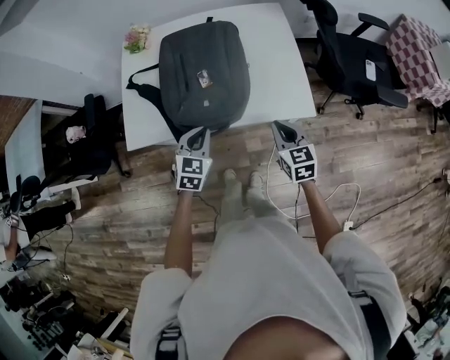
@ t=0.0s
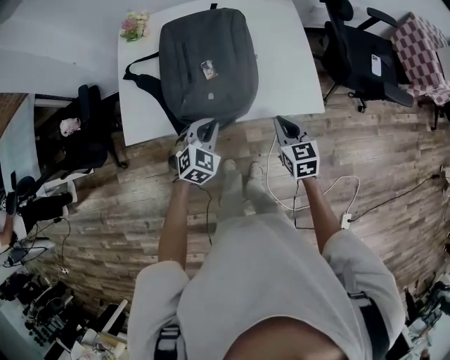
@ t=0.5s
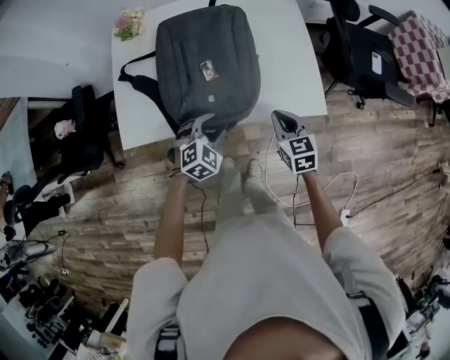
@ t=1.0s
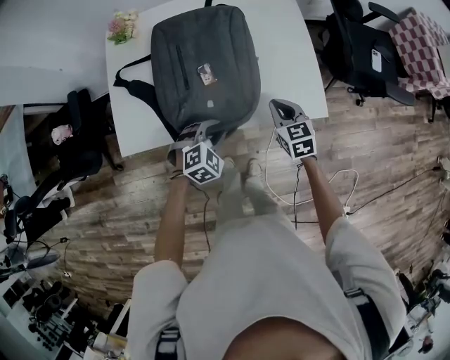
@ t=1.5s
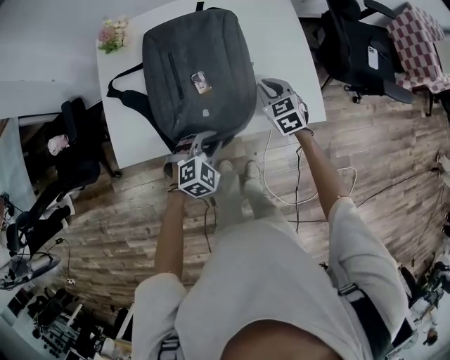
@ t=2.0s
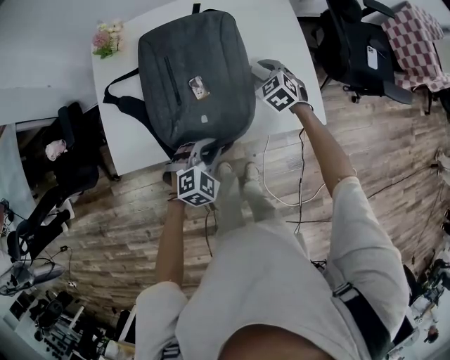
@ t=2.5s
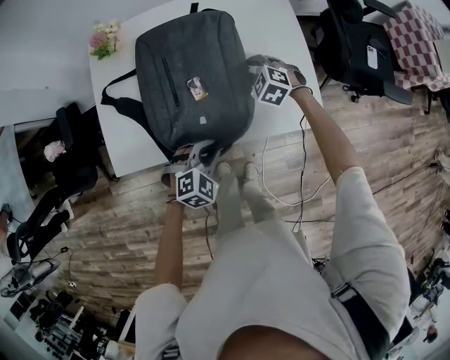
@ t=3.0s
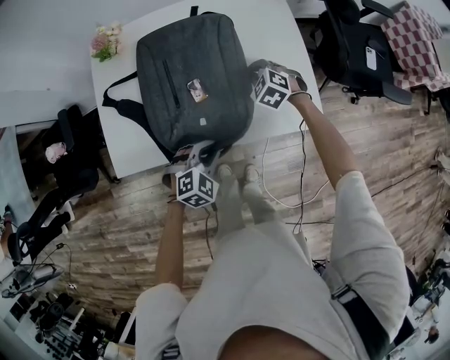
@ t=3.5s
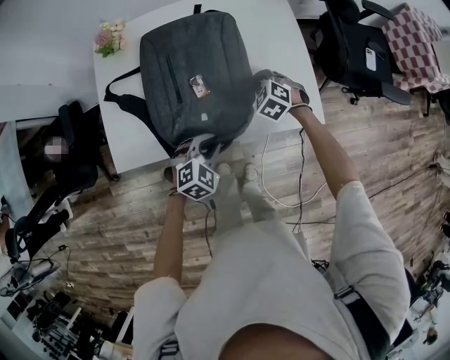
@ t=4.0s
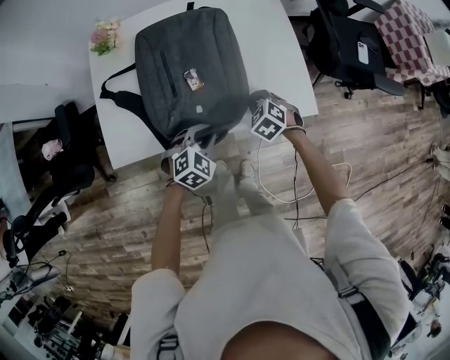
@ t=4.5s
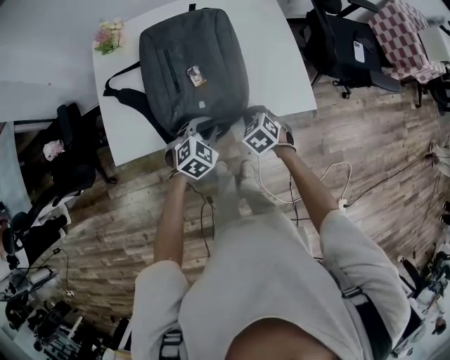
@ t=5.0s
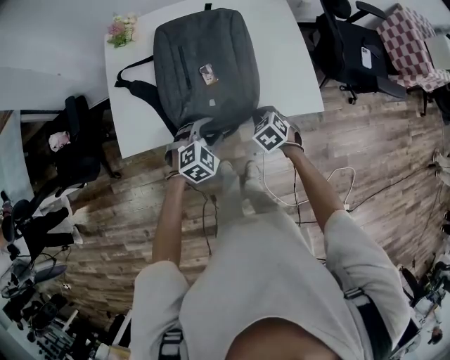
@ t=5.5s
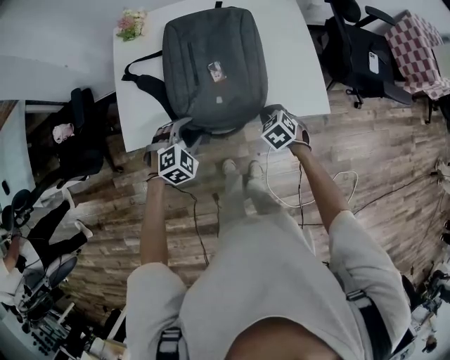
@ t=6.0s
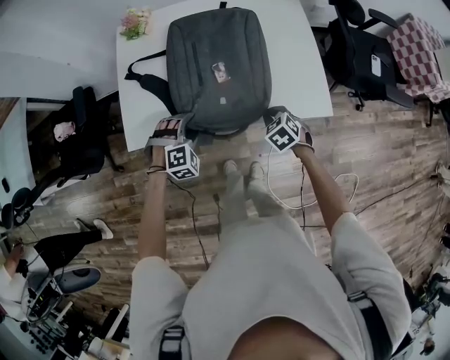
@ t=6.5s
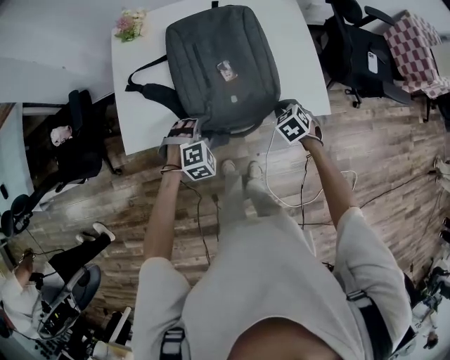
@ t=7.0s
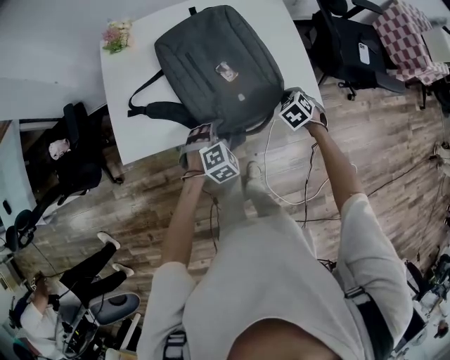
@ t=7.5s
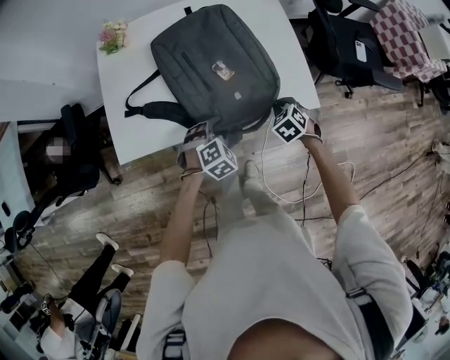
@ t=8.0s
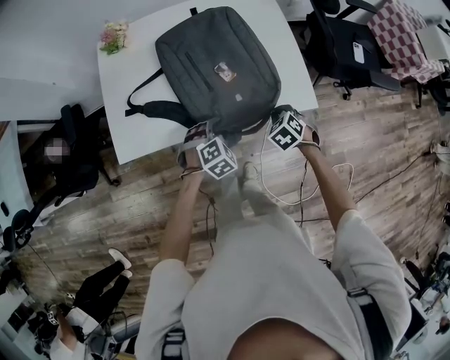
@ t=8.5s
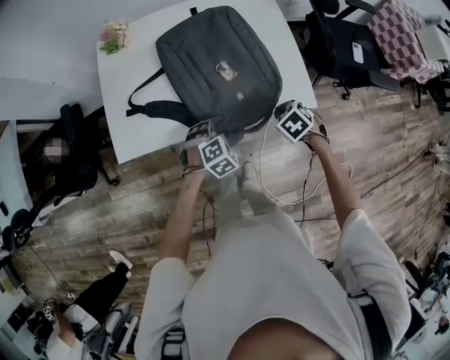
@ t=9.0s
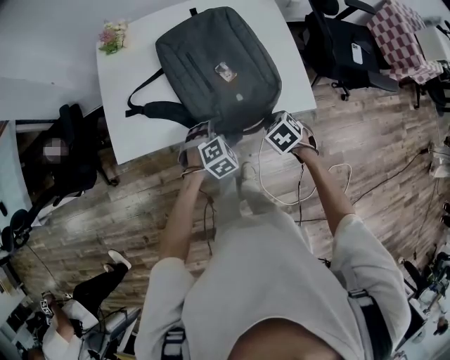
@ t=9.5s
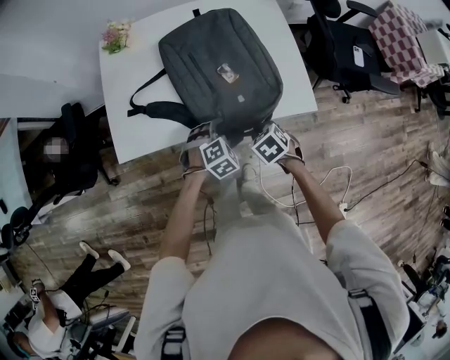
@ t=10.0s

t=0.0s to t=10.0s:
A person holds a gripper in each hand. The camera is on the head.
t=0.0s to t=2.0s: The right gripper heads forward and downward, covering approximately 20 cm. Meanwhile the left gripper travels downward by some 10 cm, changes its angle by approximately 40 degrees, and opens, then closes again.
t=2.0s to t=4.0s: The right gripper rotates some 30 degrees, and opens, then closes once more.
t=4.0s to t=6.0s: The left gripper heads to the left, covering roughly 10 cm, and opens its fingers, while the right gripper goes approximately 15 cm backward, and turns by approximately 20 degrees.
t=6.0s to t=8.0s: Both grippers move to the right, approximately 10 cm.
t=8.0s to t=10.0s: The right gripper travels to the left and backward by about 10 cm.

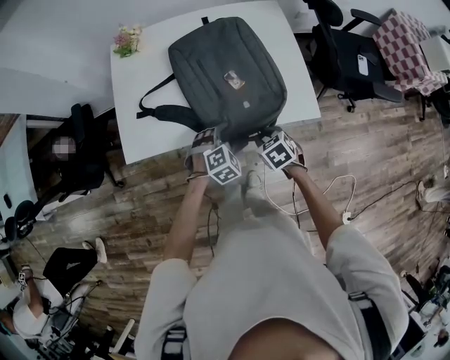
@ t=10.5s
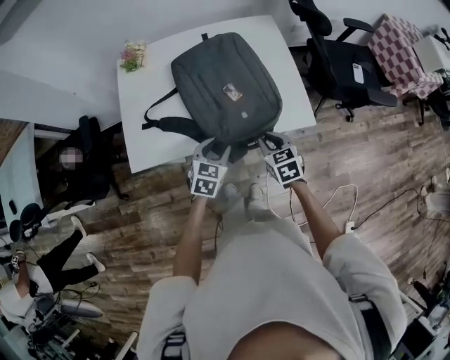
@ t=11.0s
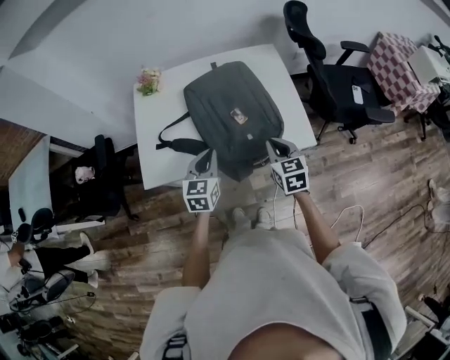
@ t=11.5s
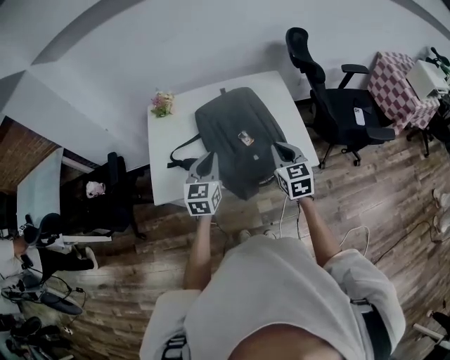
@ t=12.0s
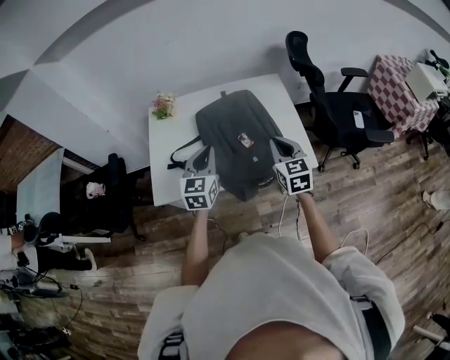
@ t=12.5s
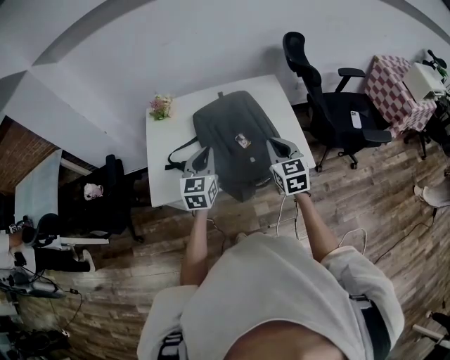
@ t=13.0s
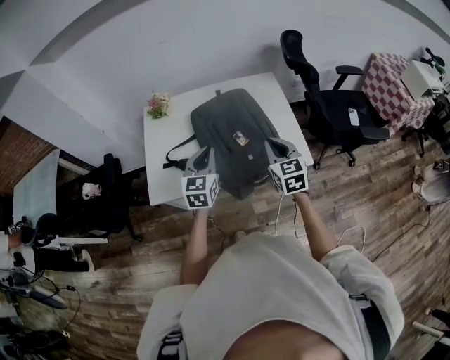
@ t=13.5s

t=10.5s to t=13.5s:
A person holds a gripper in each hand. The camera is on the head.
t=10.5s to t=12.0s: The two grippers go about 25 cm upward. The right gripper points its fingers about 40 degrees further upward. The left gripper tilts its fingers about 40 degrees upward, and closes up.
t=12.0s to t=13.5s: The grippers stay close to where they were, moving slightly.

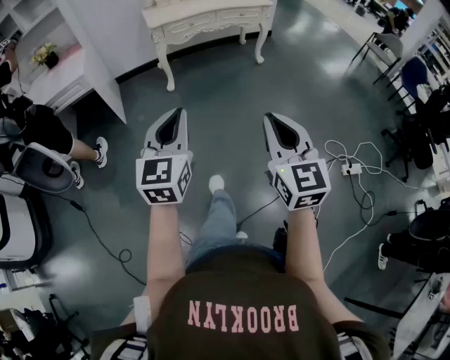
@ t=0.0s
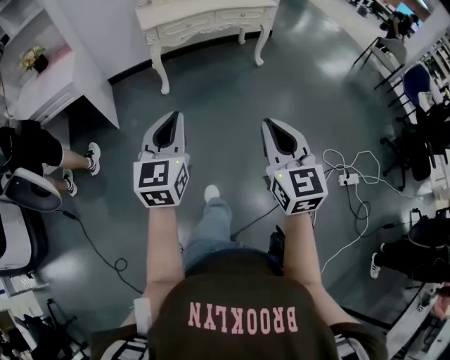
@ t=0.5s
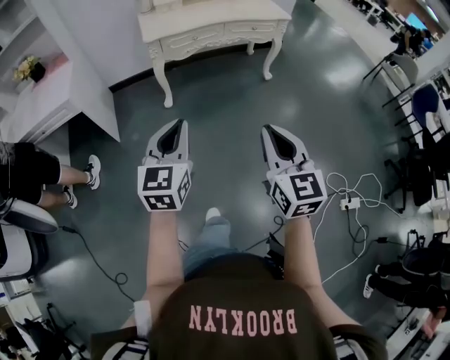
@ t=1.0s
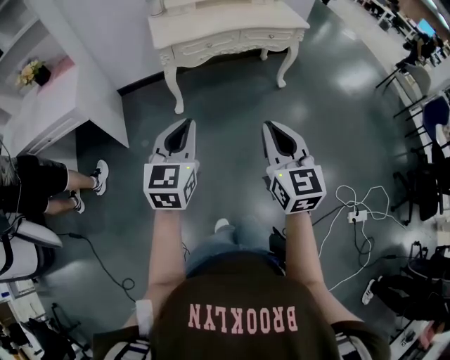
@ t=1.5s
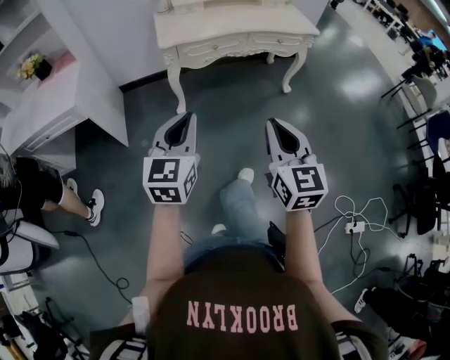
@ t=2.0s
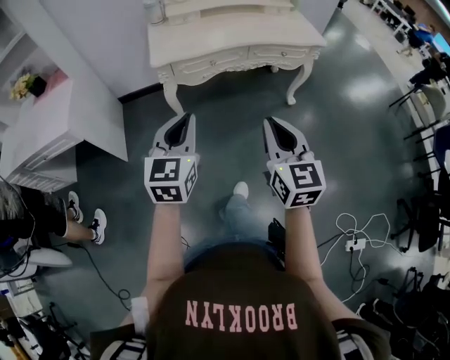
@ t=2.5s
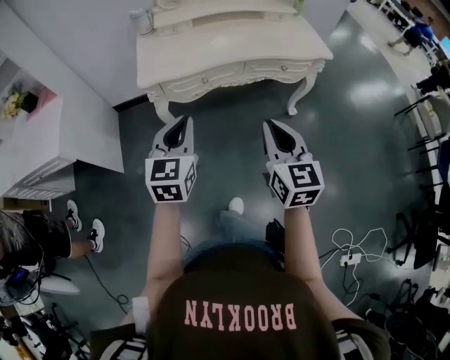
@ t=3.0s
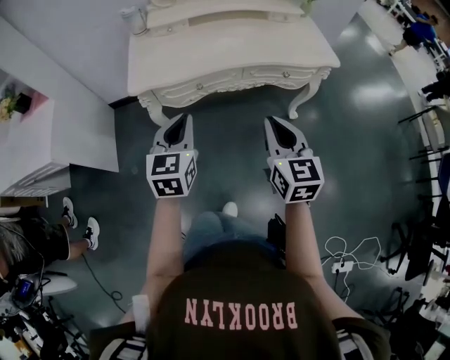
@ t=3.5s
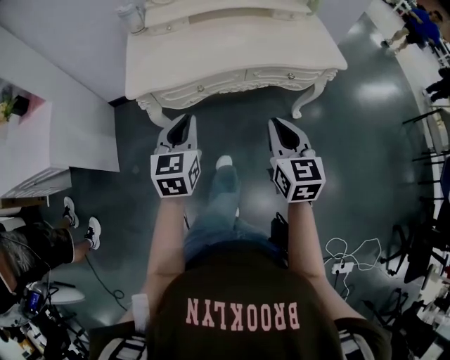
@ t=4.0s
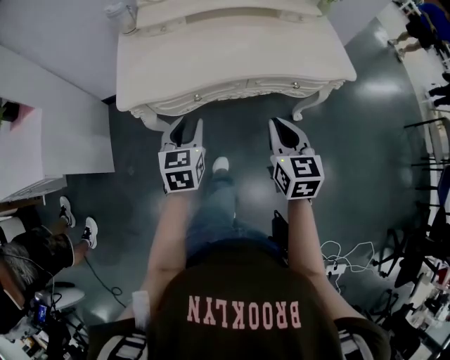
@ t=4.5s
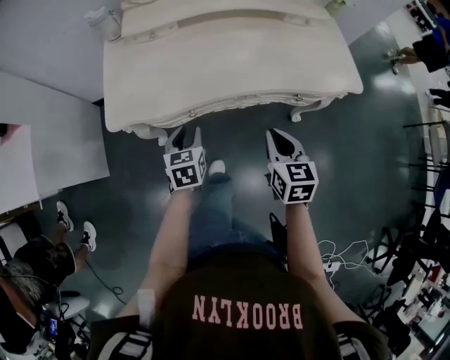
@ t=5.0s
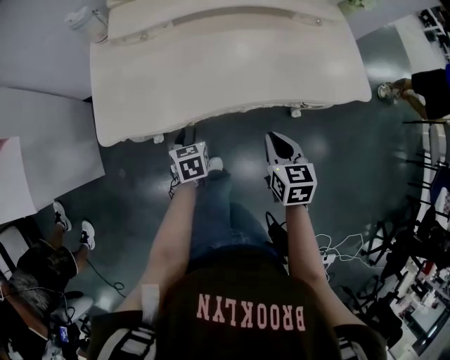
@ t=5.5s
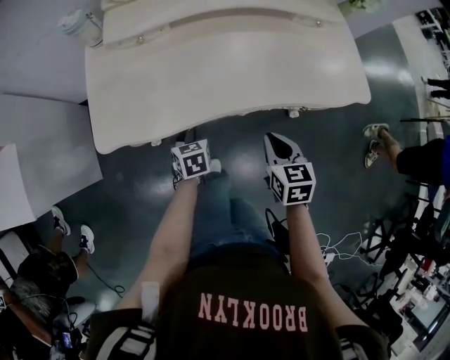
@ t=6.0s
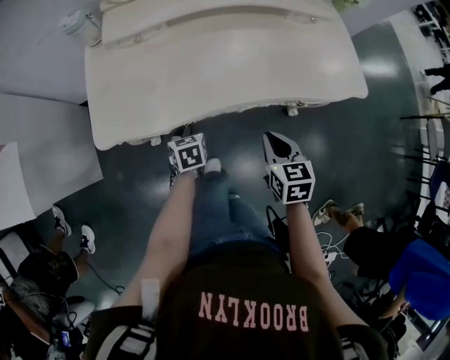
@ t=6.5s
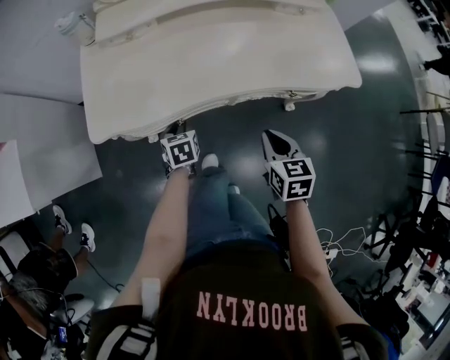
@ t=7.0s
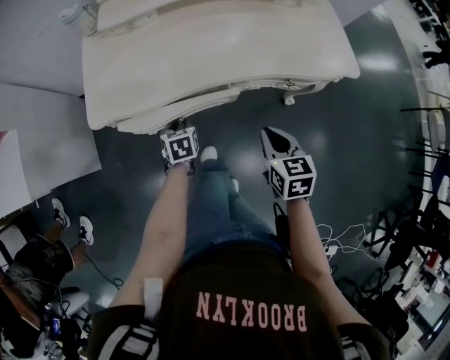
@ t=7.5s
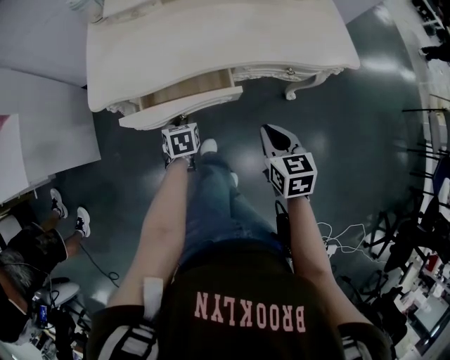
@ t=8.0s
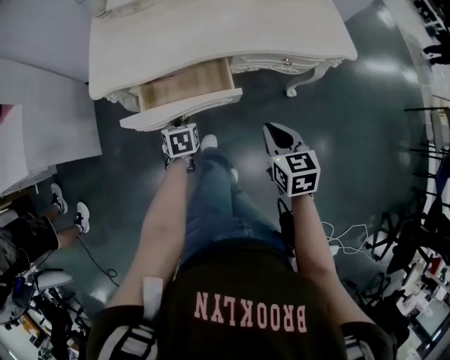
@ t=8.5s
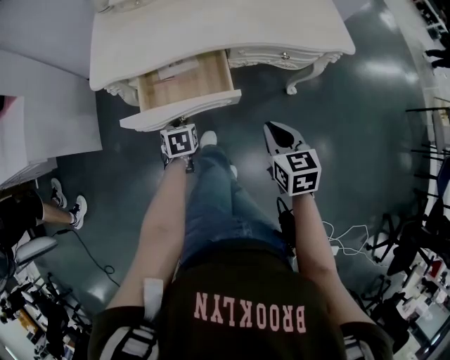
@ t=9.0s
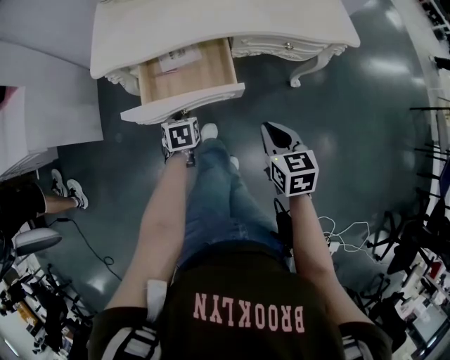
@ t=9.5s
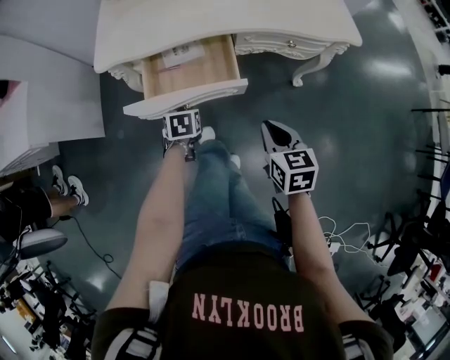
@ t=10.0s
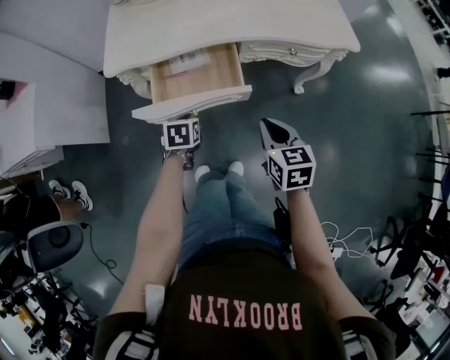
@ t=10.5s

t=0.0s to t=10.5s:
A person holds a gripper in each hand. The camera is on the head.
t=0.0s to t=2.0s: The pair of grippers is taken forward, about 40 cm.
t=2.0s to t=4.0s: The two grippers travel together, forward, about 40 cm.
t=4.0s to t=6.5s: The right gripper moves forward and downward, roughly 25 cm, and changes its angle by about 20 degrees, while the left gripper is displaced downward and forward by approximately 35 cm, points its fingers approximately 30 degrees further downward, and opens up.
t=6.5s to t=8.5s: Both grippers travel together backward, roughly 15 cm.
t=8.5s to t=10.5s: The grippers both shift backward by approximately 5 cm. The left gripper closes up.

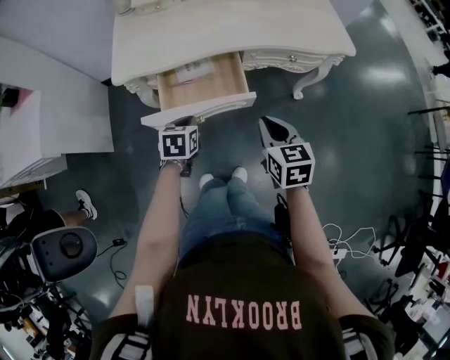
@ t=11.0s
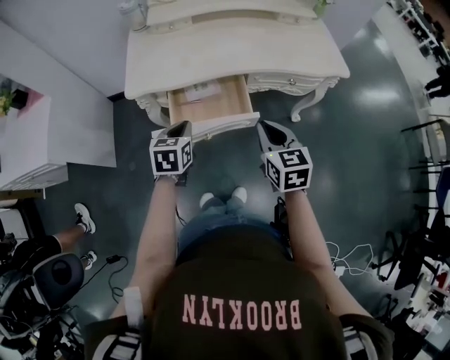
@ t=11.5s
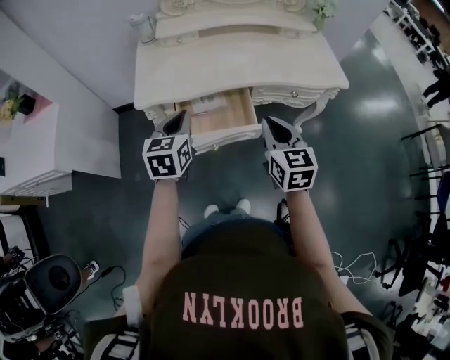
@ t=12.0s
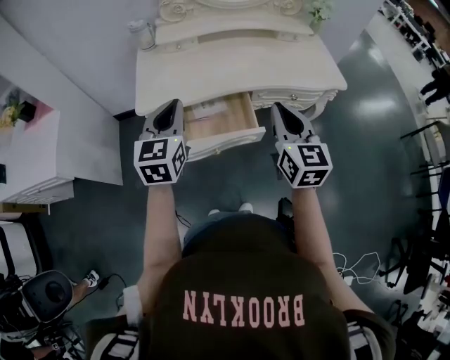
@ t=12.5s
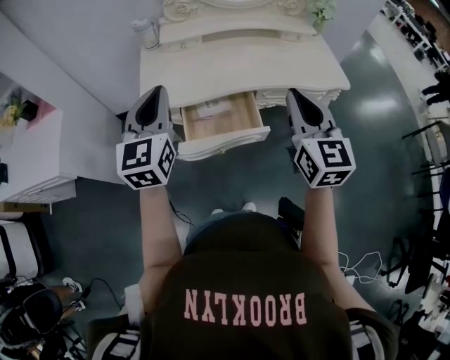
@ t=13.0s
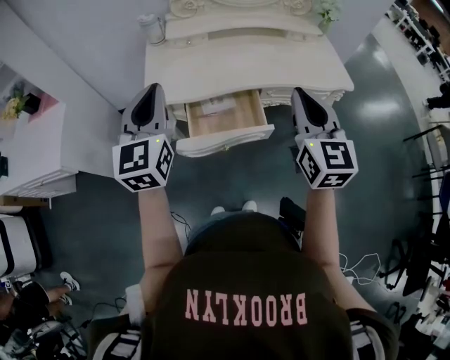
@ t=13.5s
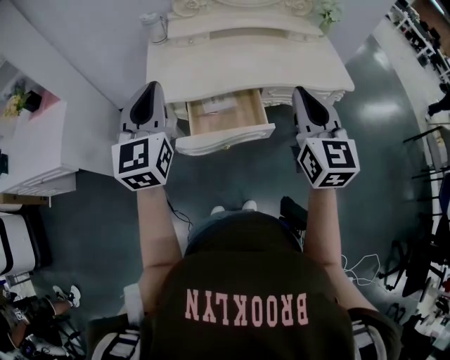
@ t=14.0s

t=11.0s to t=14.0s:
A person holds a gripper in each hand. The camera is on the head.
t=11.0s to t=12.5s: Both grippers move upward, approximately 20 cm. The right gripper rotates roughly 30 degrees. Meanwhile the left gripper tips its fingers upward by roughly 40 degrees.
t=12.5s to t=14.0s: The left gripper travels upward and to the left by approximately 10 cm, while the right gripper goes about 10 cm upward.
